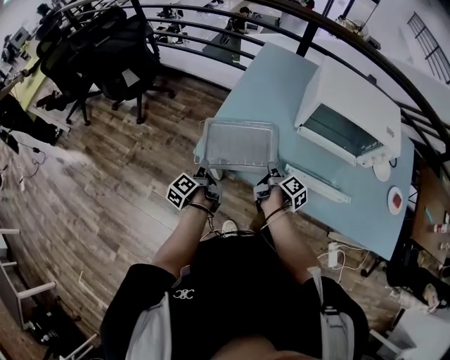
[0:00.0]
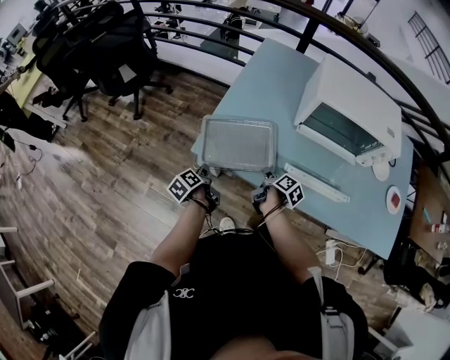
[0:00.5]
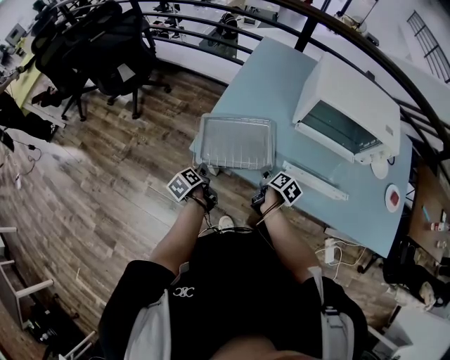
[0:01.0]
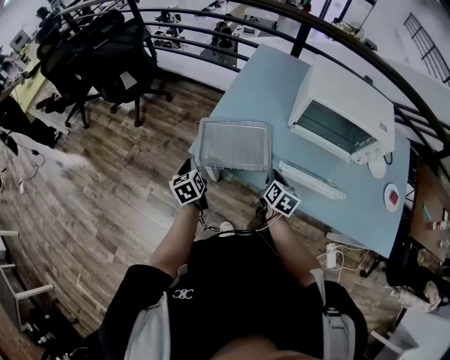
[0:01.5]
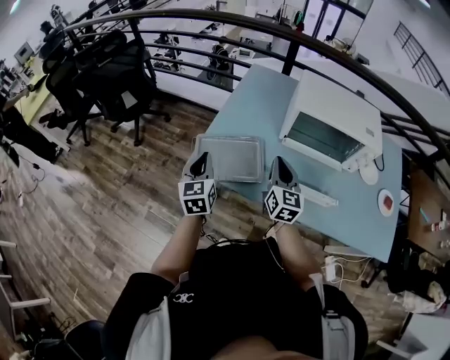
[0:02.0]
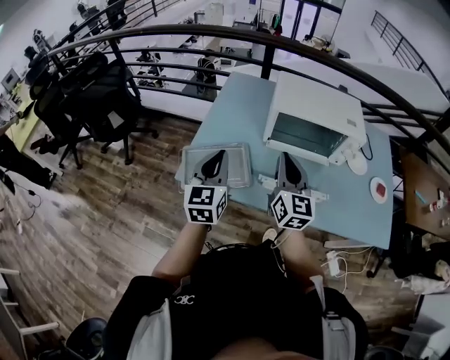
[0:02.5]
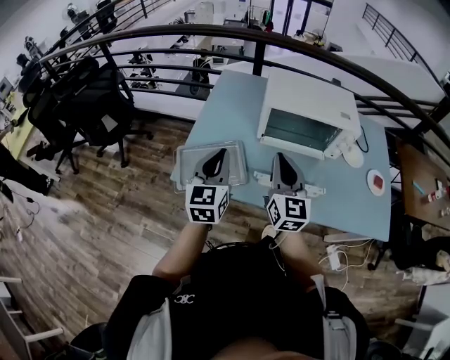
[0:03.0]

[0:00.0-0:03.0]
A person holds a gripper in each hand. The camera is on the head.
0:00.0 to 0:01.5: The right gripper goes downward and returns, about 5 cm each way, twists approximately 50 degrees counterclockwise, seen from behind, and opens, then closes again. The left gripper moves about 5 cm downward and comes back, rotates around the line of its fingers by some 50 degrees, clockwise from behind, and opens, then closes once more.
0:01.5 to 0:03.0: The right gripper travels upward by some 25 cm, and points its fingers about 40 degrees further upward. The left gripper travels upward and to the right by roughly 35 cm, and changes its angle by some 50 degrees.

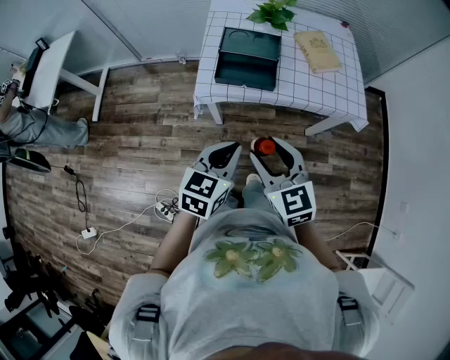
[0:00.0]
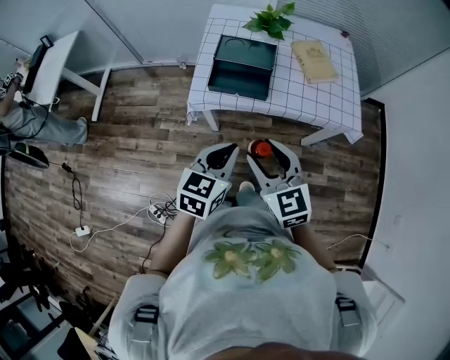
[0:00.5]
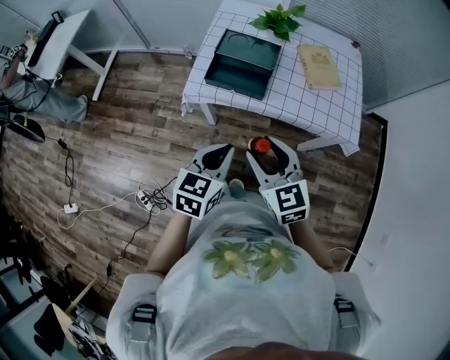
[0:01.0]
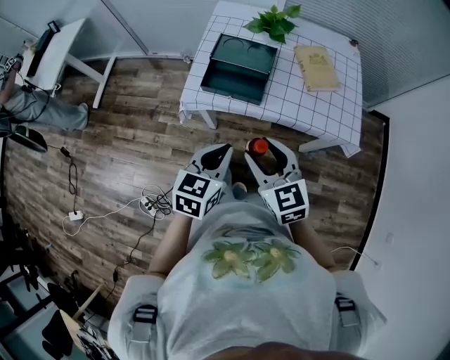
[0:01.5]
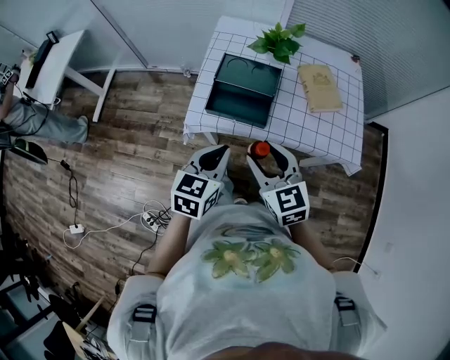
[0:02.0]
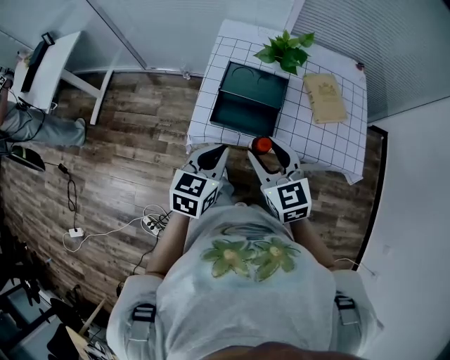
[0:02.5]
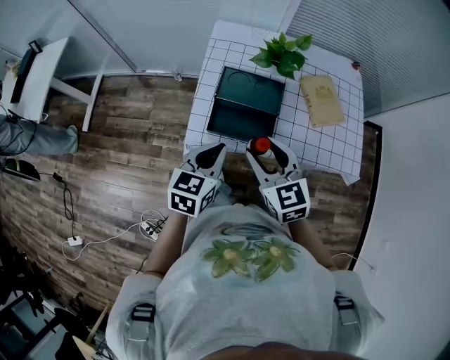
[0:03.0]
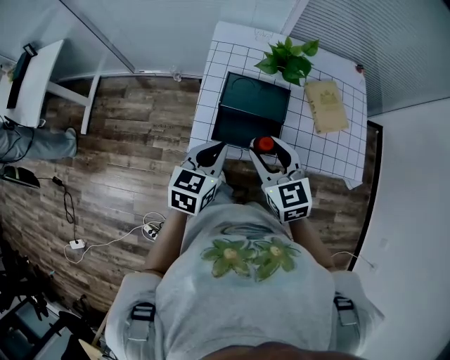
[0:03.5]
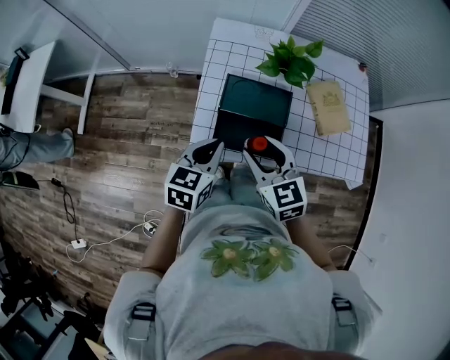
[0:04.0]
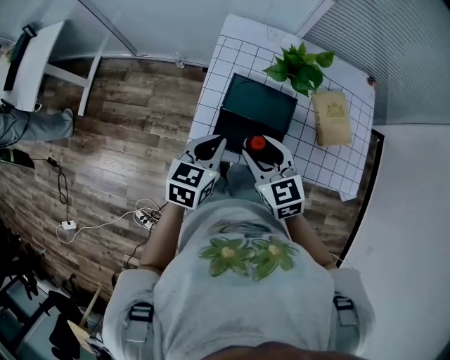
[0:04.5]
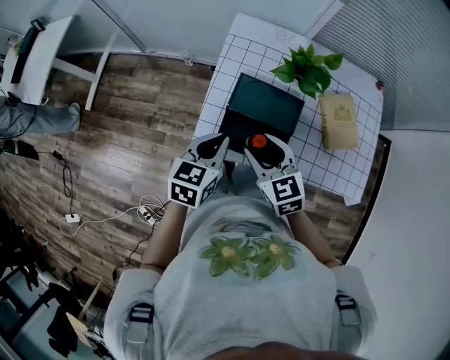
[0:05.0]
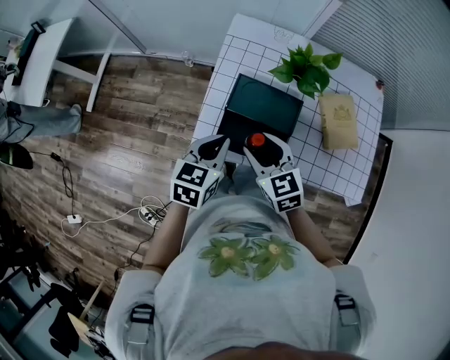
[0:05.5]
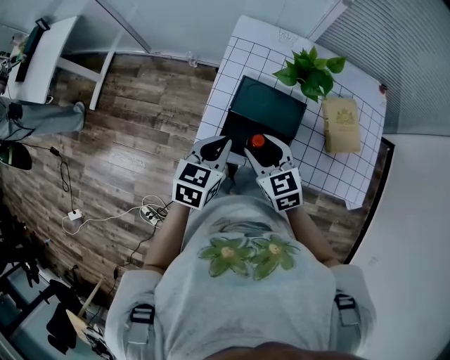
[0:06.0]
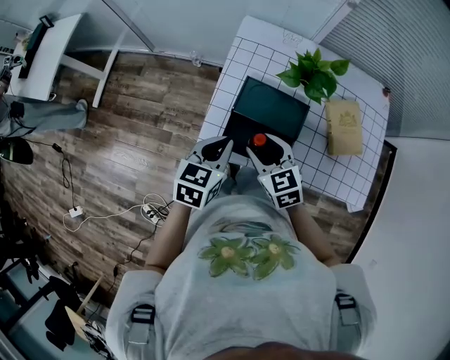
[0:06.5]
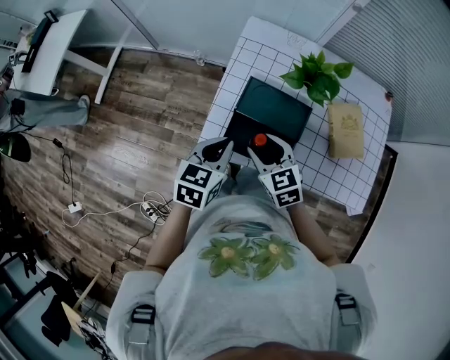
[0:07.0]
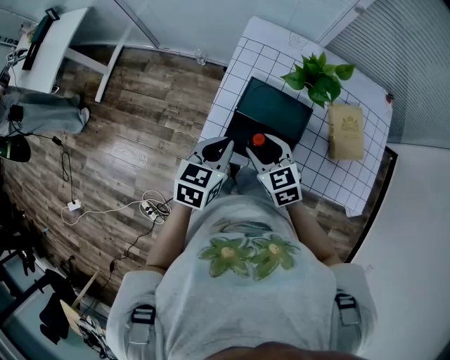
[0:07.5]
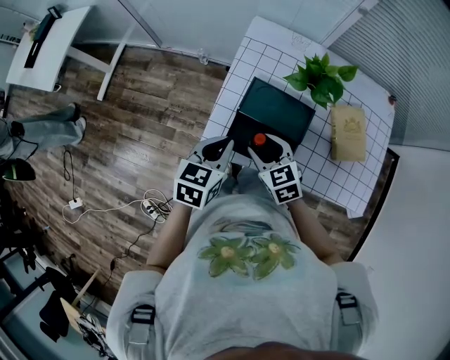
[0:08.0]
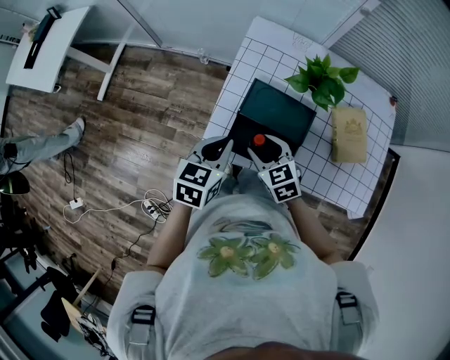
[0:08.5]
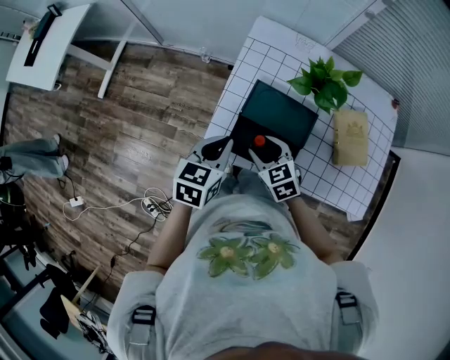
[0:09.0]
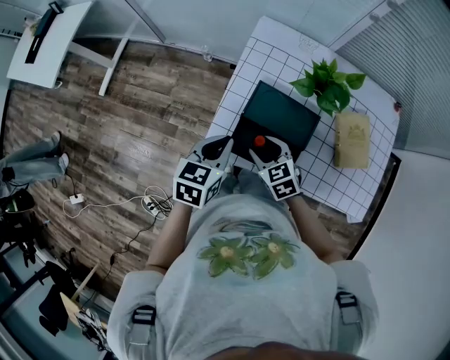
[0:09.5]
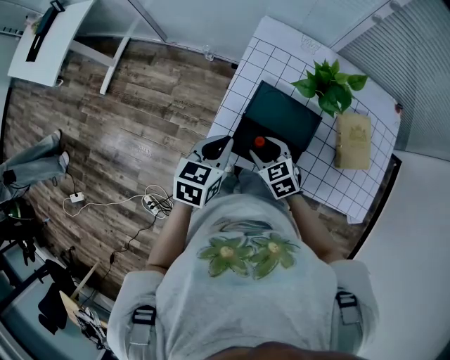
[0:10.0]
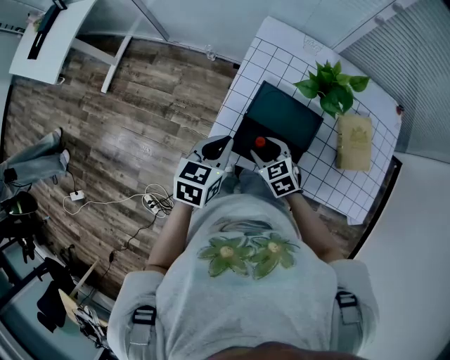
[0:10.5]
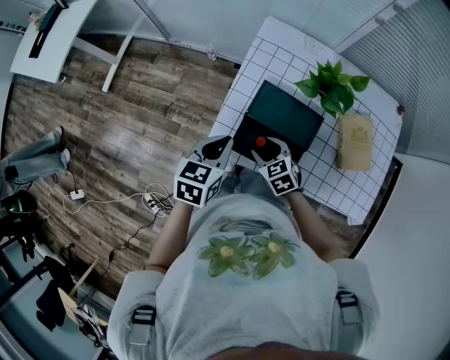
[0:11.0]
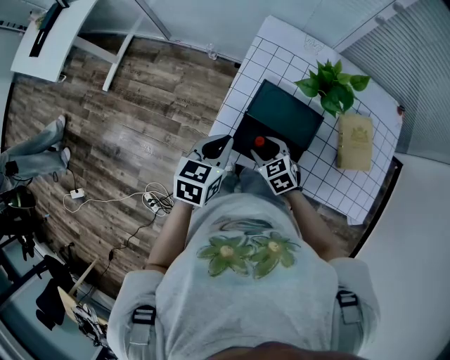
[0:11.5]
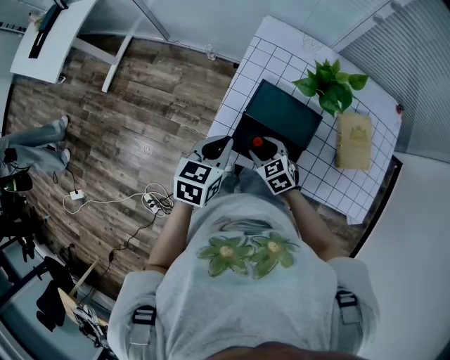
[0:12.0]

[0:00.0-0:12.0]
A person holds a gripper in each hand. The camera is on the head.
0:00.0 to 0:02.0: The right gripper heads forward and to the right, covering some 15 cm; the left gripper goes roughly 10 cm forward.
0:02.0 to 0:04.0: Both grippers travel together forward and to the left, approximately 20 cm.
0:04.0 to 0:06.0: The right gripper moves downward, some 5 cm.
0:06.0 to 0:08.0: There are only small adjustments of the grippers.
0:08.0 to 0:10.0: The right gripper moves downward, roughly 5 cm.
0:10.0 to 0:12.0: The grippers stay close to where they were, moving slightly.

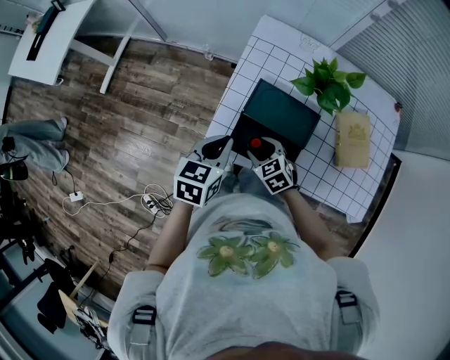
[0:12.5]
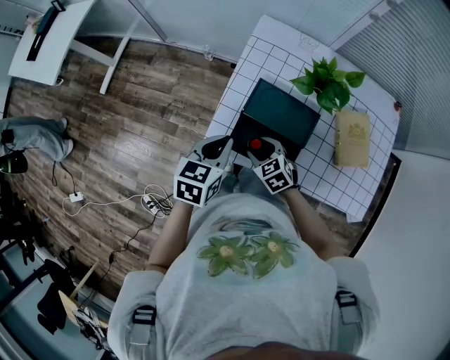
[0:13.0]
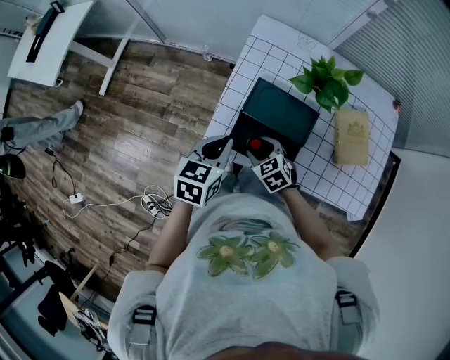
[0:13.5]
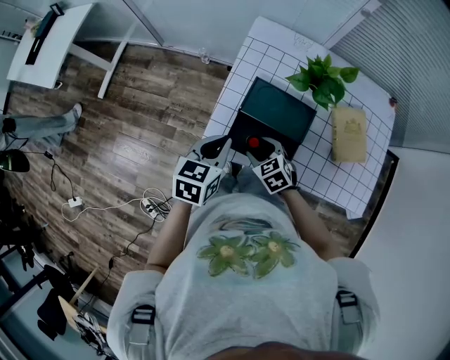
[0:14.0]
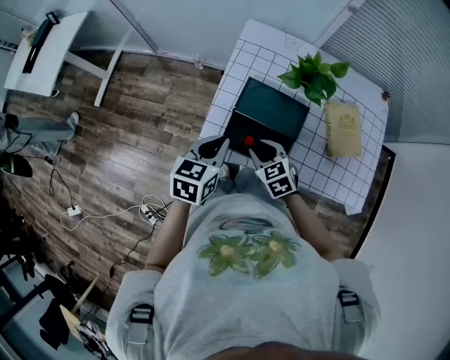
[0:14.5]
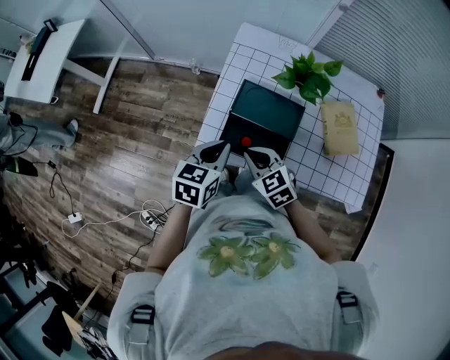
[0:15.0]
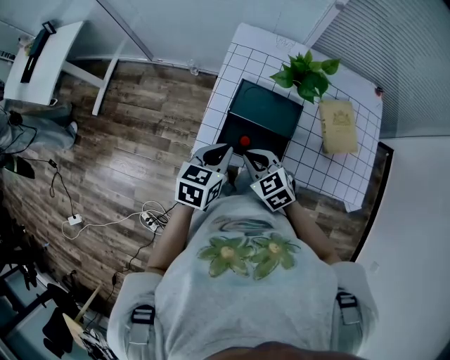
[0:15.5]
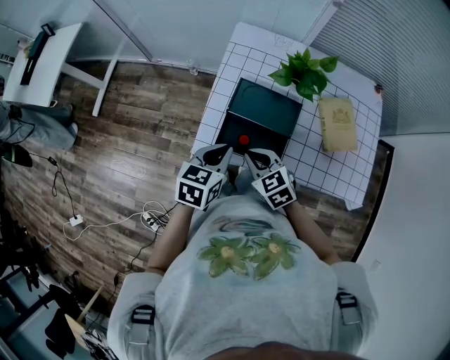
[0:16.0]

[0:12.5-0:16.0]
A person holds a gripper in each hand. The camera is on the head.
0:12.5 to 0:14.5: The right gripper heads upward, covering roughly 5 cm.
0:14.5 to 0:16.0: The right gripper ends up some 5 cm from where it was, and closes its fingers.

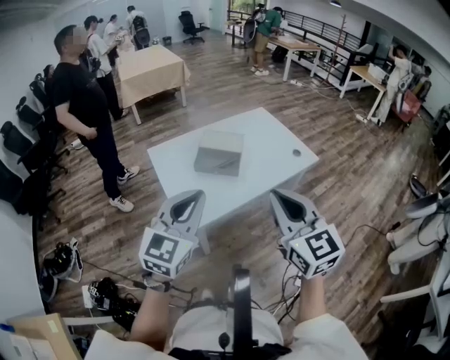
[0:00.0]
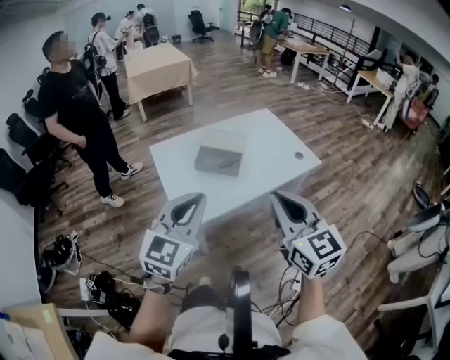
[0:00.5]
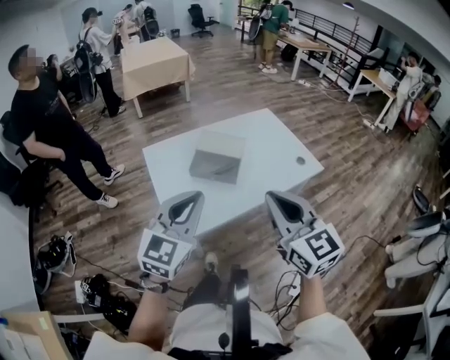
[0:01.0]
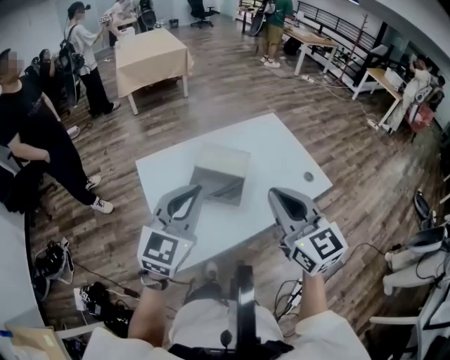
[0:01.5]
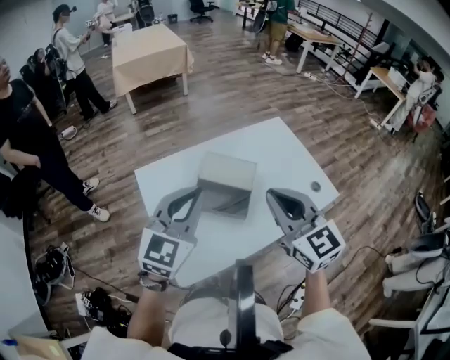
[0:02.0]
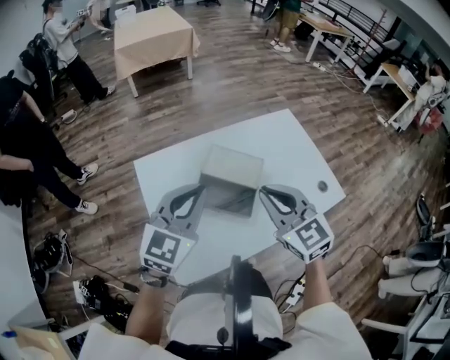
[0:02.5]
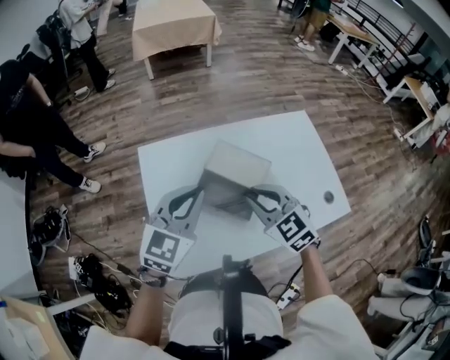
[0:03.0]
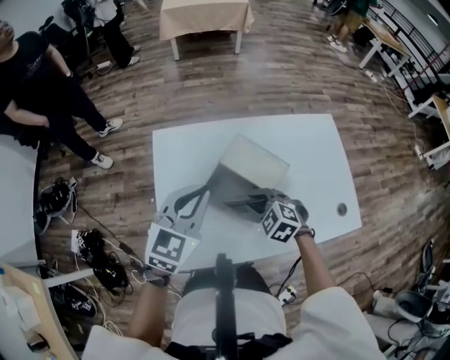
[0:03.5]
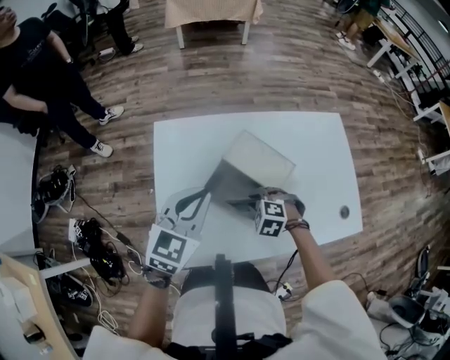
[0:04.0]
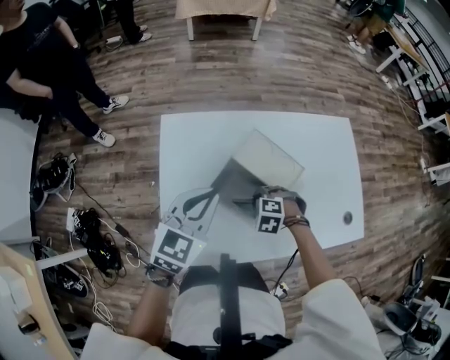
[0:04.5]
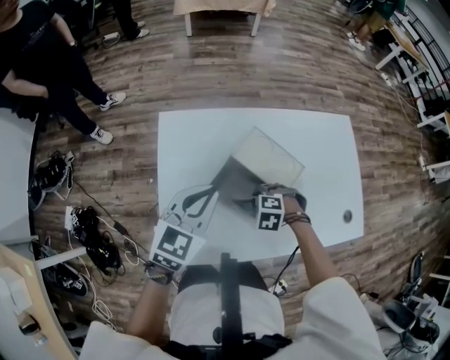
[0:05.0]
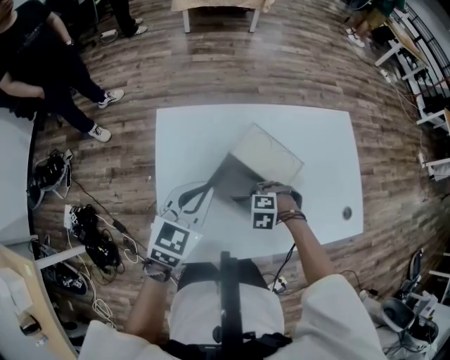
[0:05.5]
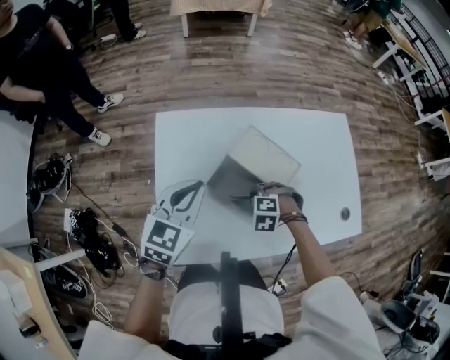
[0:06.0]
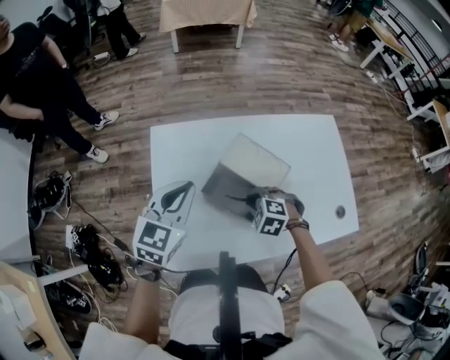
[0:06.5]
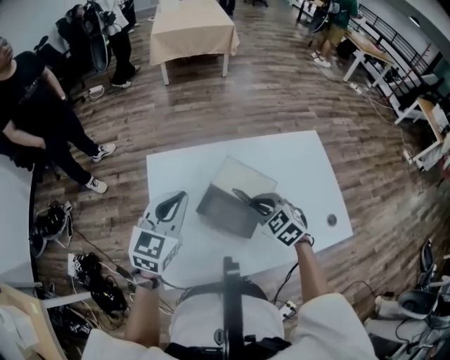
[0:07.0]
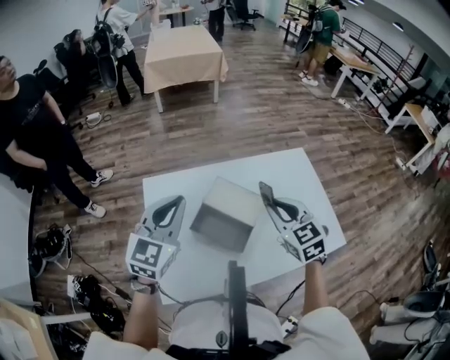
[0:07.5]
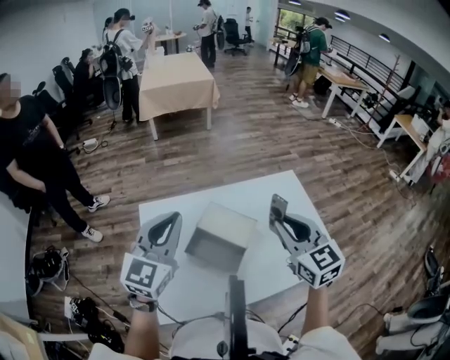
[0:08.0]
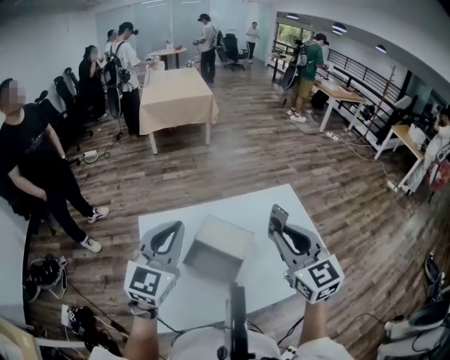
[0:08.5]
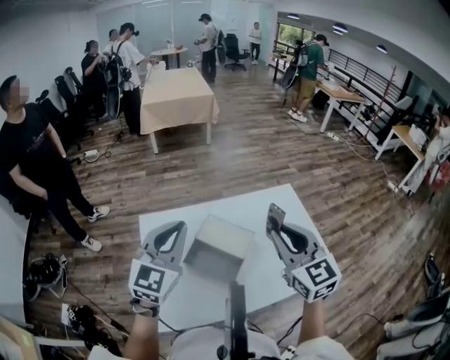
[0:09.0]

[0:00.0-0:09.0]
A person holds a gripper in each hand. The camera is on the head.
0:00.0 to 0:02.0: The two grippers go some 30 cm forward.
0:02.0 to 0:04.5: The left gripper is displaced downward by approximately 15 cm, and rotates some 30 degrees; the right gripper is displaced downward by some 40 cm, and angles its fingers downward, by some 70 degrees.
0:04.5 to 0:07.0: The right gripper shifts roughly 15 cm upward, and tips its fingers upward by roughly 30 degrees. Meanwhile the left gripper changes place by approximately 5 cm.
0:07.0 to 0:09.0: The left gripper travels upward and to the right by about 15 cm. Meanwhile the right gripper goes roughly 30 cm upward and to the right, and tilts its fingers about 30 degrees upward.
